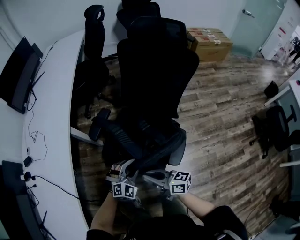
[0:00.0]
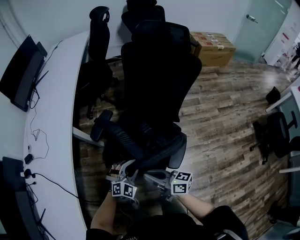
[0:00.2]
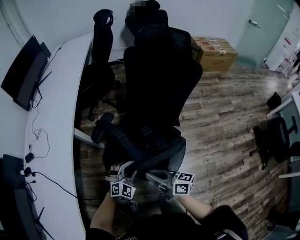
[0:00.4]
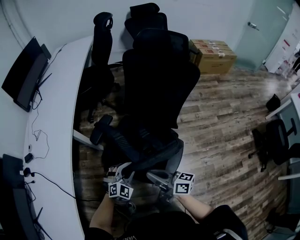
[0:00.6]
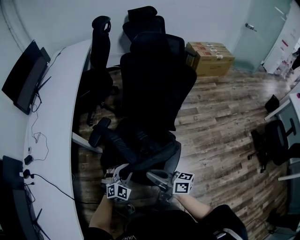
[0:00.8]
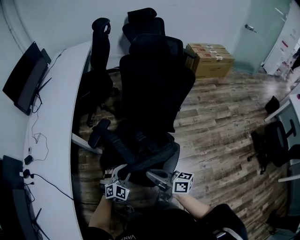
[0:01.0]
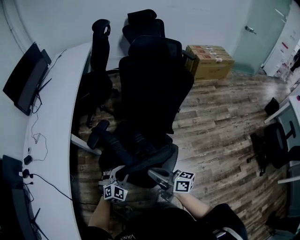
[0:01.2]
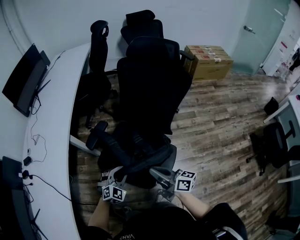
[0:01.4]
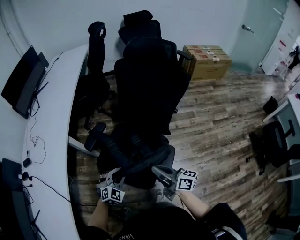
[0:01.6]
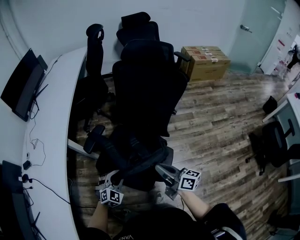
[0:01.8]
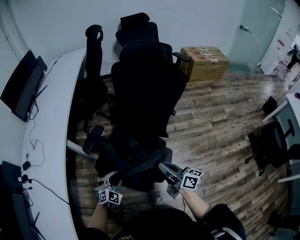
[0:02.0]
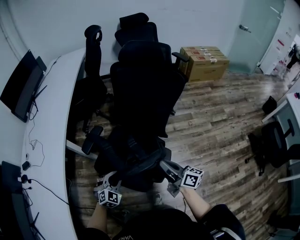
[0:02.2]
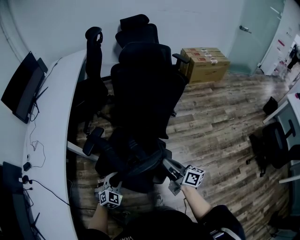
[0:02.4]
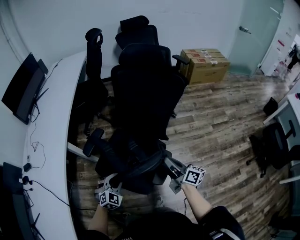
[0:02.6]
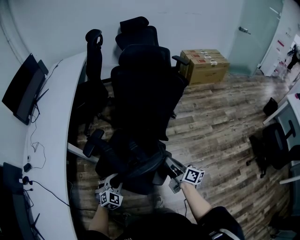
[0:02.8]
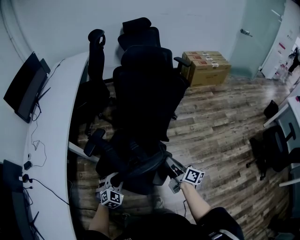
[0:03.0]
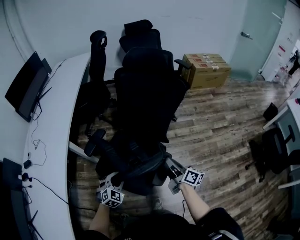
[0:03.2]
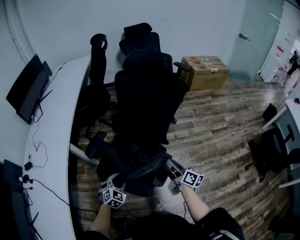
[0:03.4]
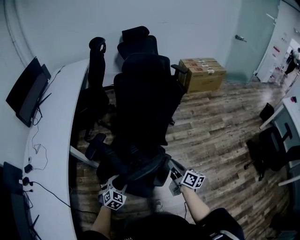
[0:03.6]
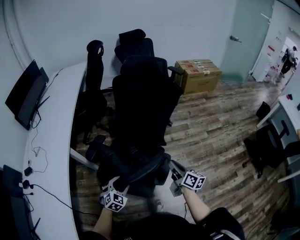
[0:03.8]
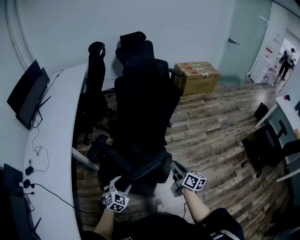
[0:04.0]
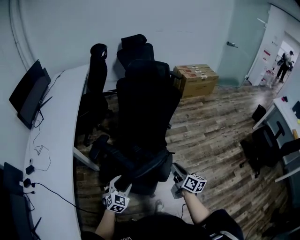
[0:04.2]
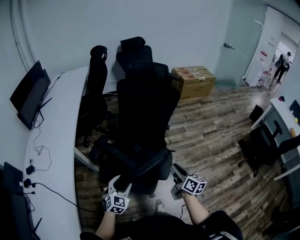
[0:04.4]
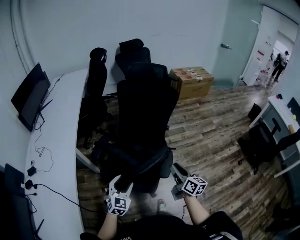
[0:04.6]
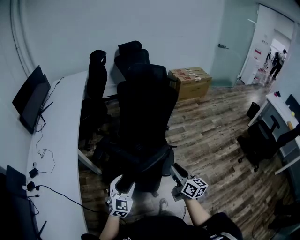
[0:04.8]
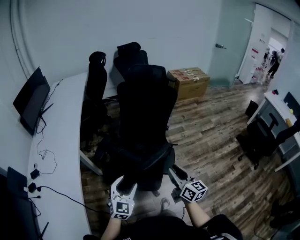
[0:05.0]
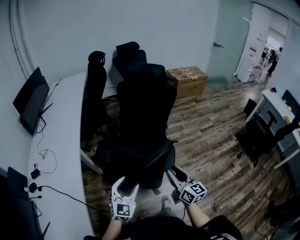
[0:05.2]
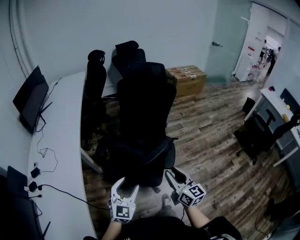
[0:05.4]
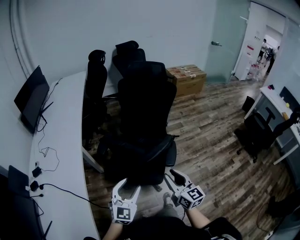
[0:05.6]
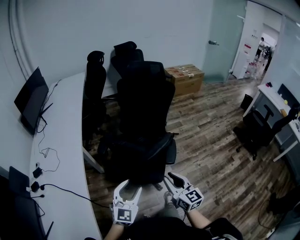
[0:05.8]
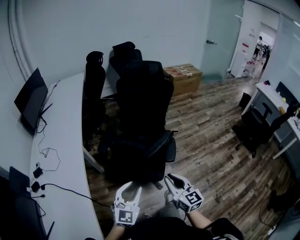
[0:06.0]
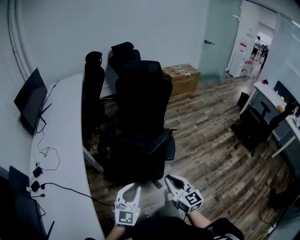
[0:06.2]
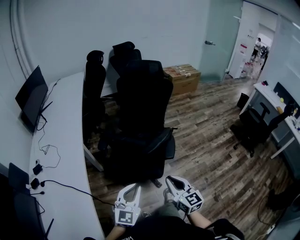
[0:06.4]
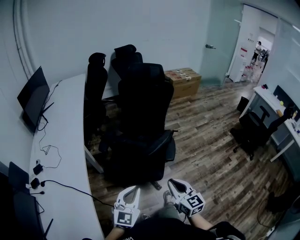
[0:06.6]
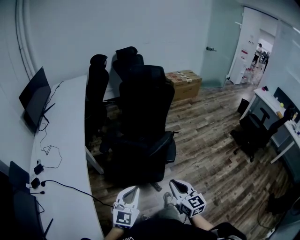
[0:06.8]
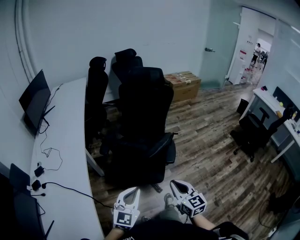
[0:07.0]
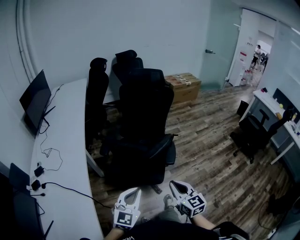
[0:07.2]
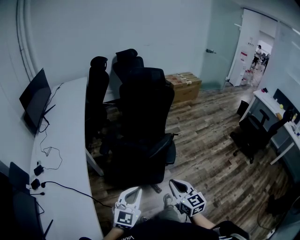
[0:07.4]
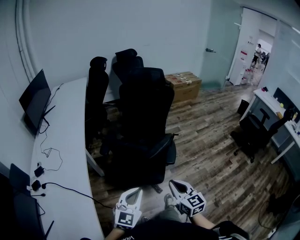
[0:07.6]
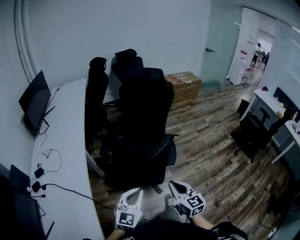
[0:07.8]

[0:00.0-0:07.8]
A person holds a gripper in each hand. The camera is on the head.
0:00.0 to 0:01.6: The right gripper travels to the right by about 15 cm.
0:01.6 to 0:03.2: The right gripper heads to the right, covering roughly 10 cm, and turns by about 20 degrees.
0:03.2 to 0:04.6: The left gripper heads upward, backward and to the left, covering roughly 15 cm, and opens. Meanwhile the right gripper shifts roughly 20 cm backward, upward and to the left, and rotates some 20 degrees.
0:04.6 to 0:06.2: The left gripper shifts some 20 cm backward and upward, rotates some 20 degrees, and closes up, while the right gripper heads backward and to the left, covering approximately 25 cm, and swivels approximately 30 degrees.
0:06.2 to 0:07.8: The grippers move only a little.

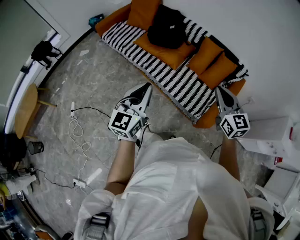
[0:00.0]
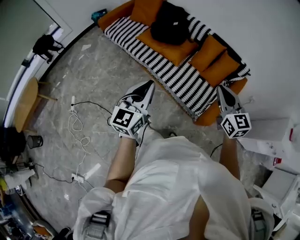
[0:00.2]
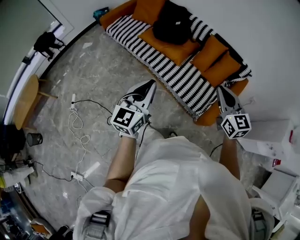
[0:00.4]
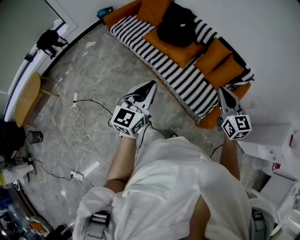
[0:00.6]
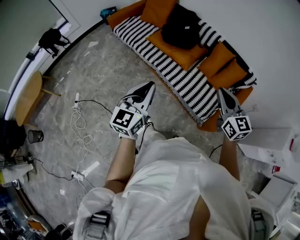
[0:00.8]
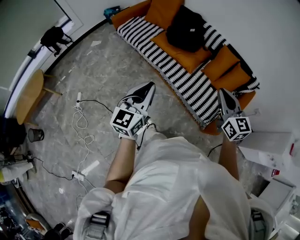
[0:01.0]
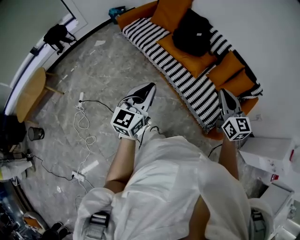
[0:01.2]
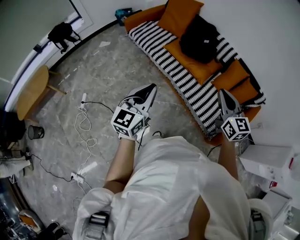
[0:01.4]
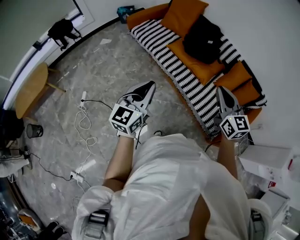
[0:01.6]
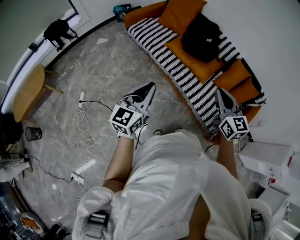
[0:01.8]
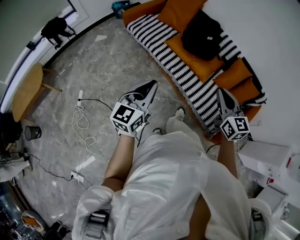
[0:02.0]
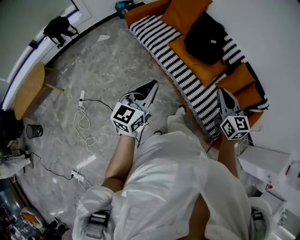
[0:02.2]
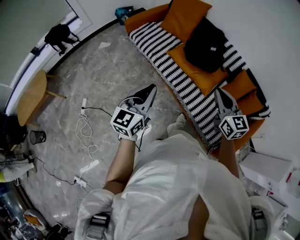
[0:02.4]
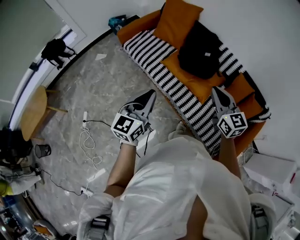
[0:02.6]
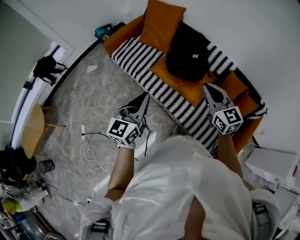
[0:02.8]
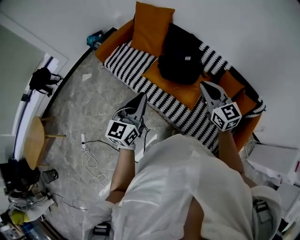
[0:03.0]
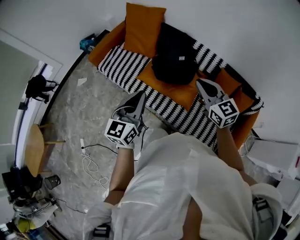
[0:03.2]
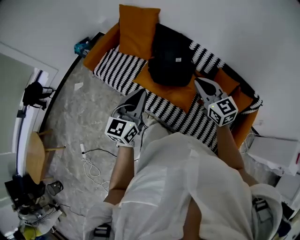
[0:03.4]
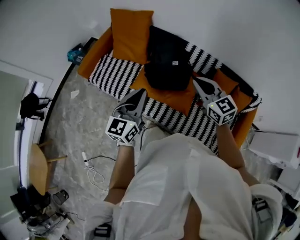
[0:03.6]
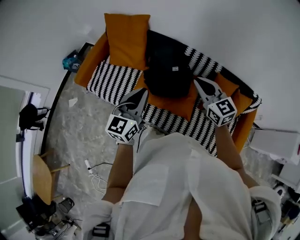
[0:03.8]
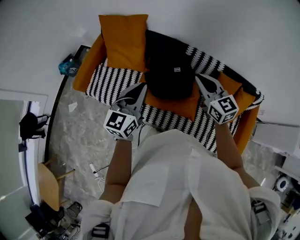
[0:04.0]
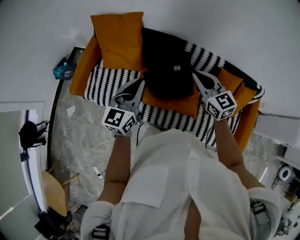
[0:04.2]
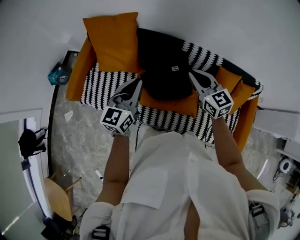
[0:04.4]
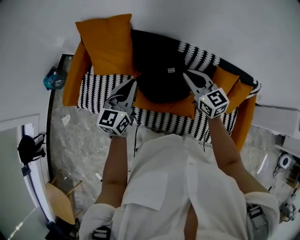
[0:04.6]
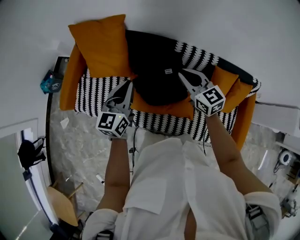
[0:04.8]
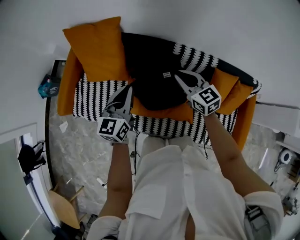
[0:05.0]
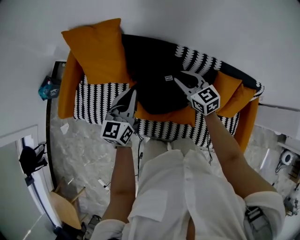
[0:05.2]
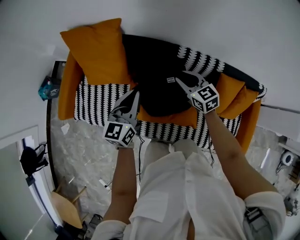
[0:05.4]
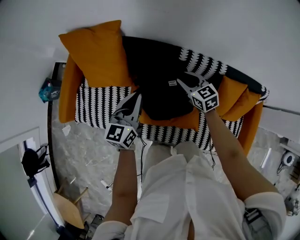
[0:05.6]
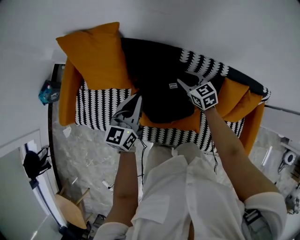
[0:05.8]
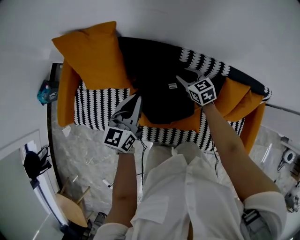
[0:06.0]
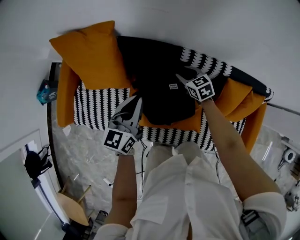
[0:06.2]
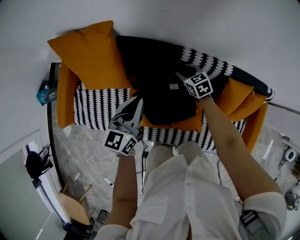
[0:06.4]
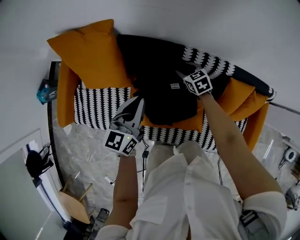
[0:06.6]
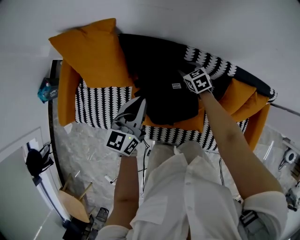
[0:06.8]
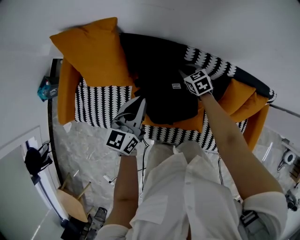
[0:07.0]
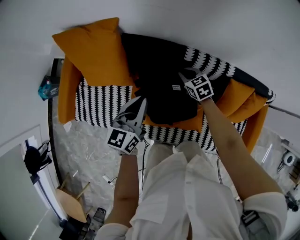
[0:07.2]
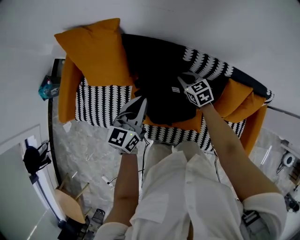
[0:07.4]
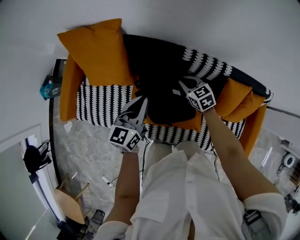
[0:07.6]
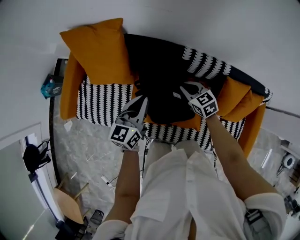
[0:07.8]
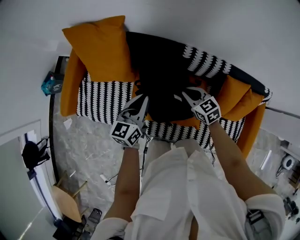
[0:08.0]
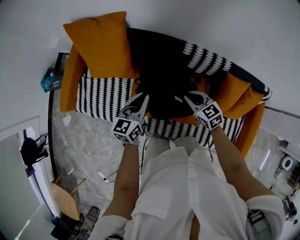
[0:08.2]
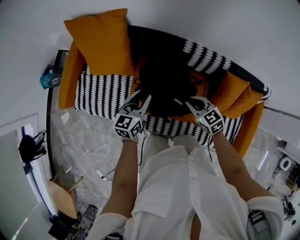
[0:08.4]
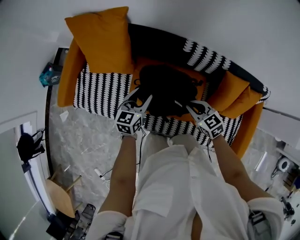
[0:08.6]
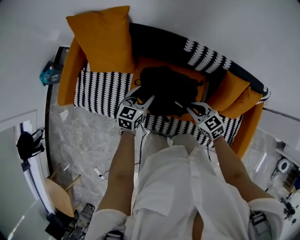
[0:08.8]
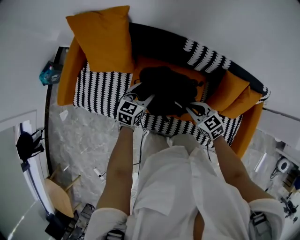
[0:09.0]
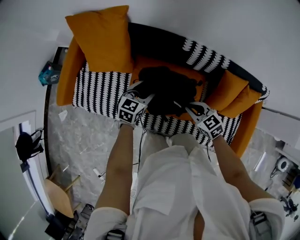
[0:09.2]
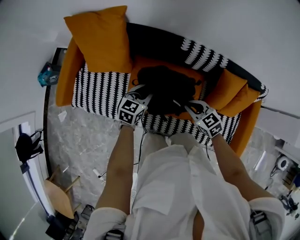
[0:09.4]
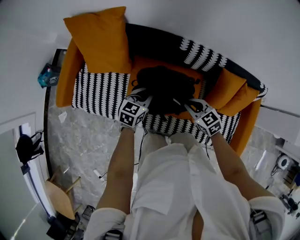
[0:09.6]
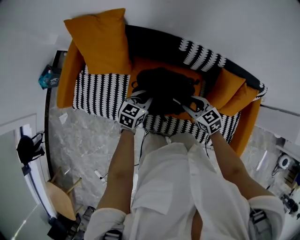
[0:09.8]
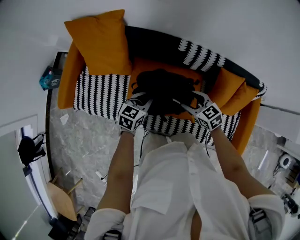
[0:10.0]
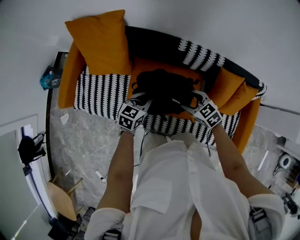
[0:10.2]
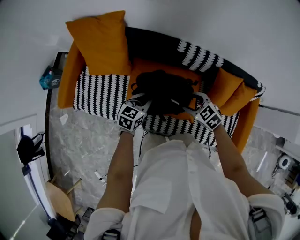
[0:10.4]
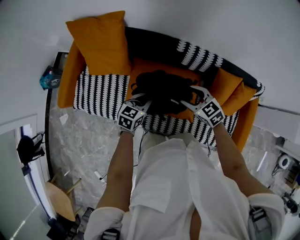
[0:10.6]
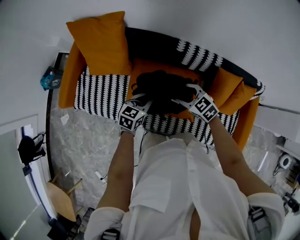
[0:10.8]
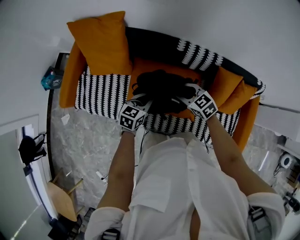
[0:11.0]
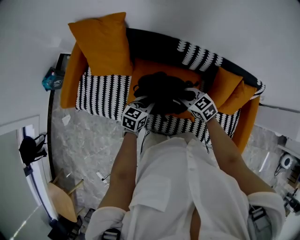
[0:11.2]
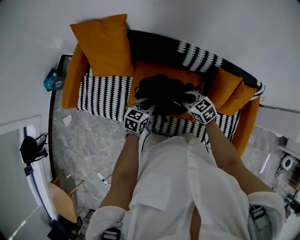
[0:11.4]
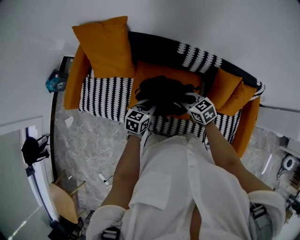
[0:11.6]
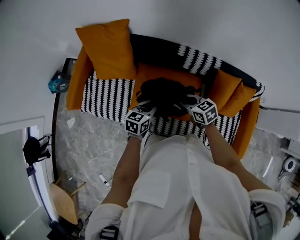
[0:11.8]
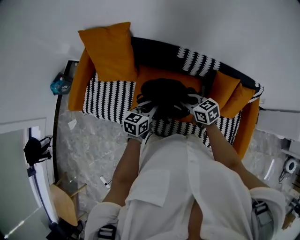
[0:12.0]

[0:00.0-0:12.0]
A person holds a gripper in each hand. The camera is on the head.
0:00.0 to 0:01.6: Both grippers move to the left, approximately 25 cm.
0:01.6 to 0:03.0: Both grippers travel together forward, about 30 cm.
0:03.0 to 0:04.4: The grippers both shift forward by roughly 30 cm. The right gripper turns by some 20 degrees. The left gripper swivels some 30 degrees.
0:04.4 to 0:06.0: The right gripper goes some 30 cm downward and forward, changes its angle by some 20 degrees, and opens up. Meanwhile the left gripper is displaced forward and downward by some 15 cm.
0:06.0 to 0:07.6: The right gripper closes.
0:07.6 to 0:09.0: The right gripper goes approximately 20 cm backward. Meanwhile the left gripper goes about 10 cm downward, changes its angle by approximately 20 degrees, and opens its fingers.
0:09.0 to 0:10.4: The left gripper changes place by about 5 cm, and closes its fingers; the right gripper opens.
0:10.4 to 0:12.0: Both grippers move upward, roughly 5 cm. The right gripper rotates approximately 30 degrees, and closes its fingers.

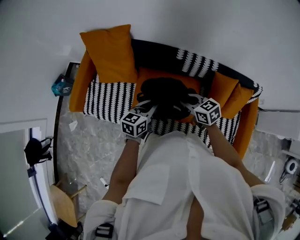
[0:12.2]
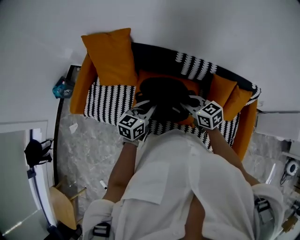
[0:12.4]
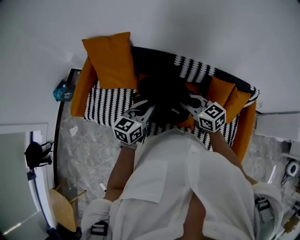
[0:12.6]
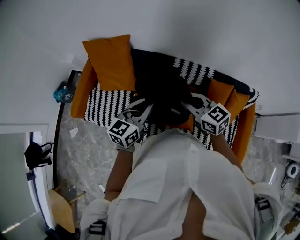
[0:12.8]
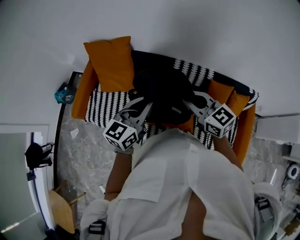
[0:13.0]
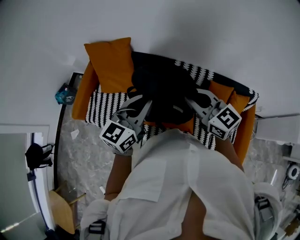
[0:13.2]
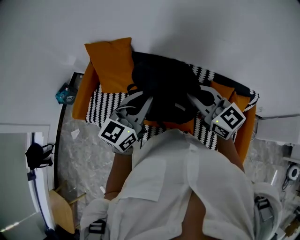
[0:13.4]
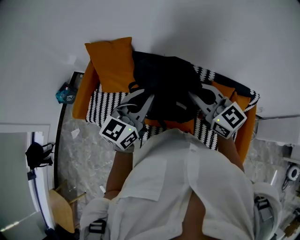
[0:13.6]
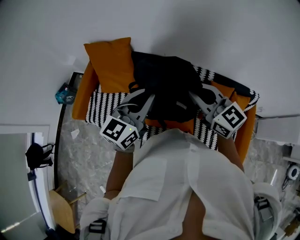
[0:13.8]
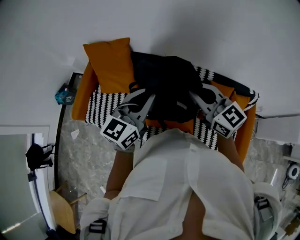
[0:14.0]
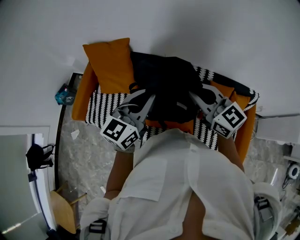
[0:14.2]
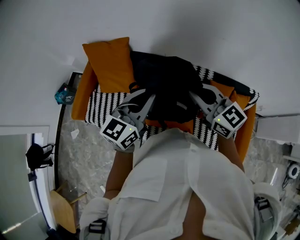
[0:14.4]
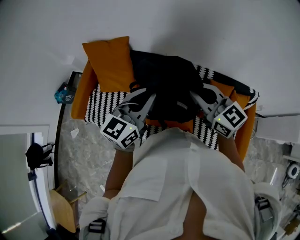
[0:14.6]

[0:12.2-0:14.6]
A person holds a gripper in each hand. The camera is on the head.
0:12.2 to 0:13.4: The grippers both shift upward by roughly 25 cm. The right gripper changes its angle by roughly 30 degrees. The left gripper turns by roughly 30 degrees.
0:13.4 to 0:14.6: The grippers stay close to where they were, moving slightly.

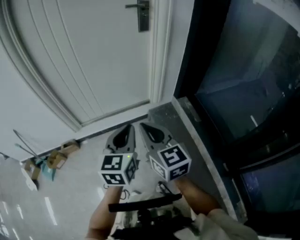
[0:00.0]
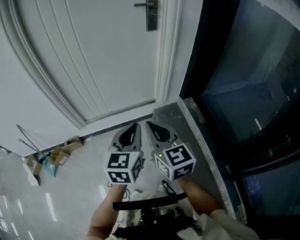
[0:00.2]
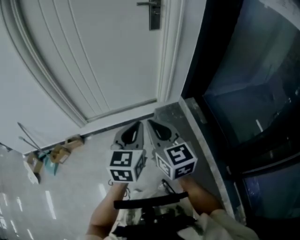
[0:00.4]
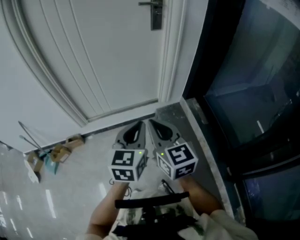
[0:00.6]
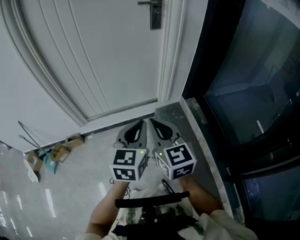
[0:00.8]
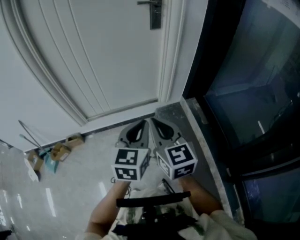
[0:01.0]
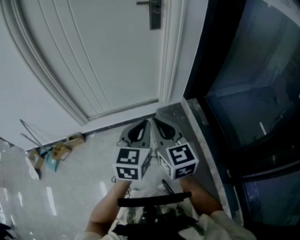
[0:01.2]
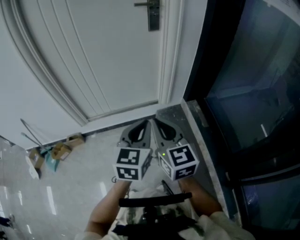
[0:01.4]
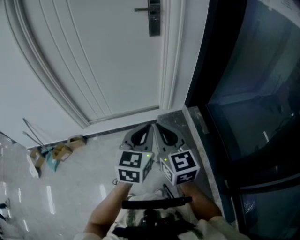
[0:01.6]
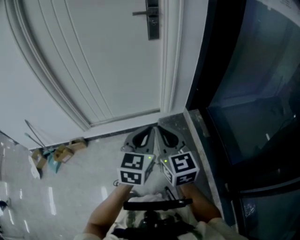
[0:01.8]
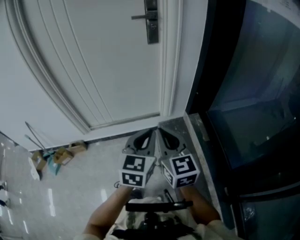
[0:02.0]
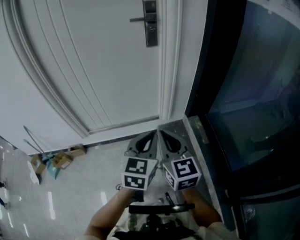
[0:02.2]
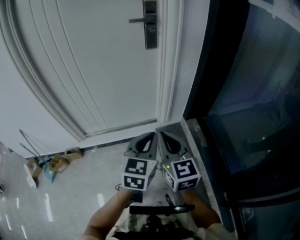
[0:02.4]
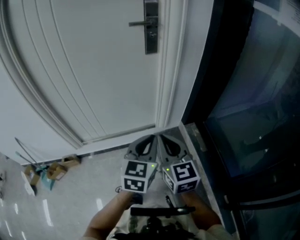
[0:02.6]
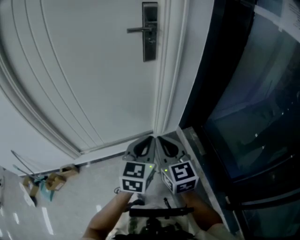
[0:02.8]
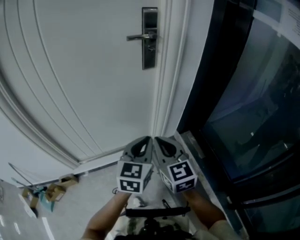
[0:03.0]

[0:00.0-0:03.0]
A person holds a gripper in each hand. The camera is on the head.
0:00.0 to 0:01.6: The grippers both shift to the right by some 10 cm.
0:01.6 to 0:03.0: The grippers both shift forward by about 20 cm.
